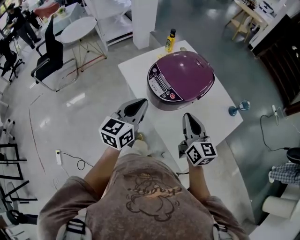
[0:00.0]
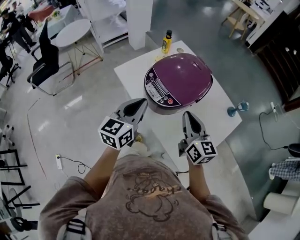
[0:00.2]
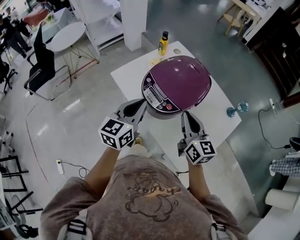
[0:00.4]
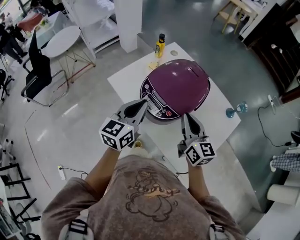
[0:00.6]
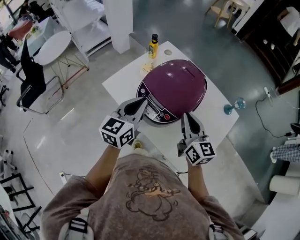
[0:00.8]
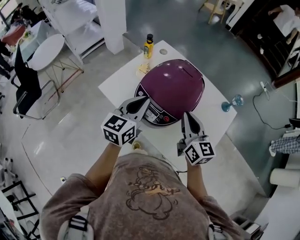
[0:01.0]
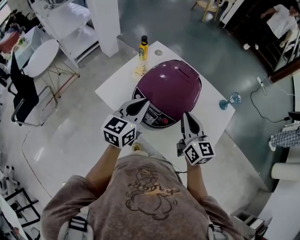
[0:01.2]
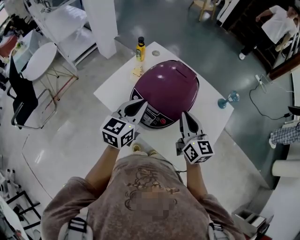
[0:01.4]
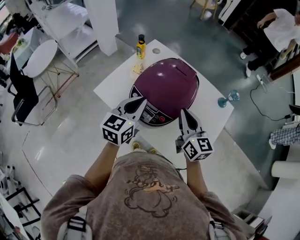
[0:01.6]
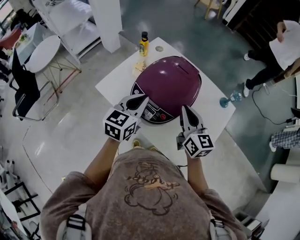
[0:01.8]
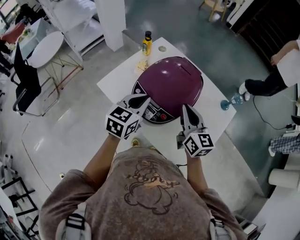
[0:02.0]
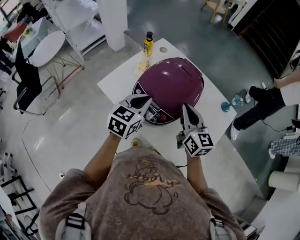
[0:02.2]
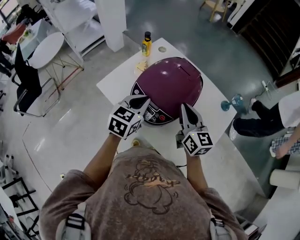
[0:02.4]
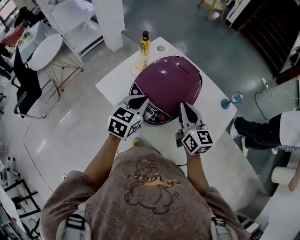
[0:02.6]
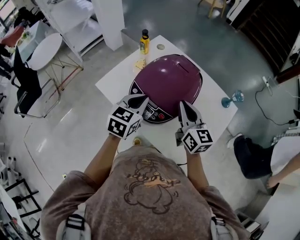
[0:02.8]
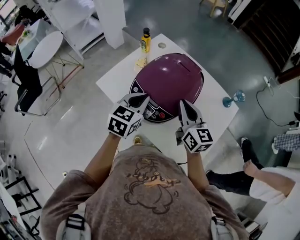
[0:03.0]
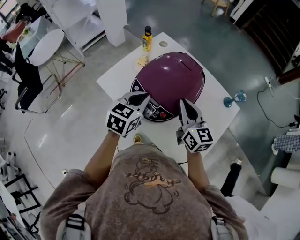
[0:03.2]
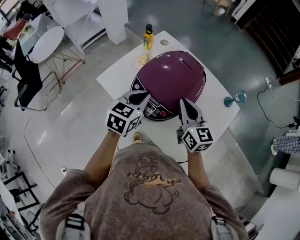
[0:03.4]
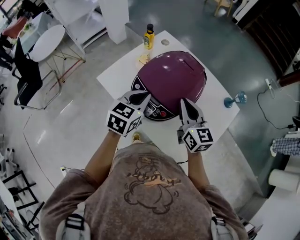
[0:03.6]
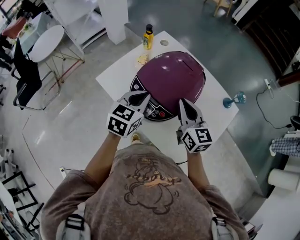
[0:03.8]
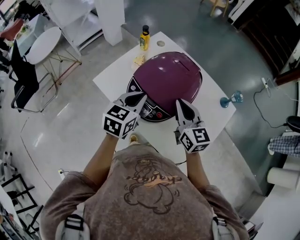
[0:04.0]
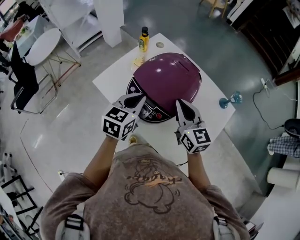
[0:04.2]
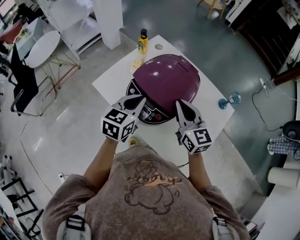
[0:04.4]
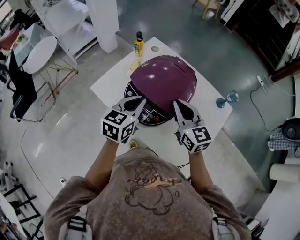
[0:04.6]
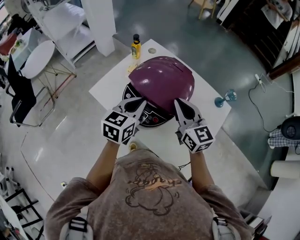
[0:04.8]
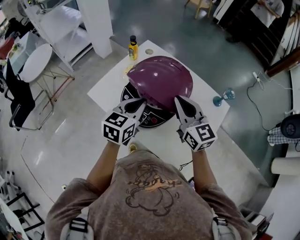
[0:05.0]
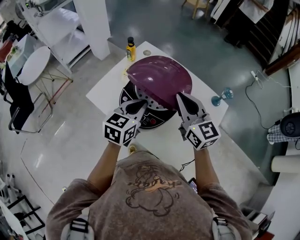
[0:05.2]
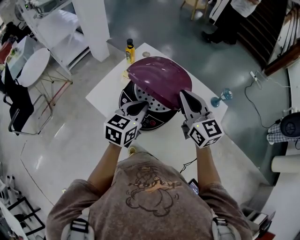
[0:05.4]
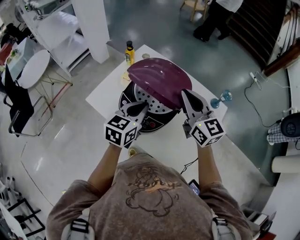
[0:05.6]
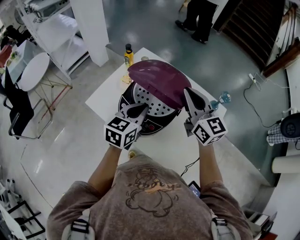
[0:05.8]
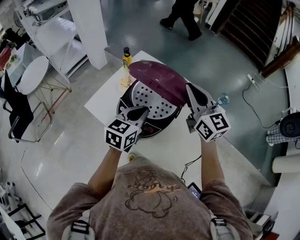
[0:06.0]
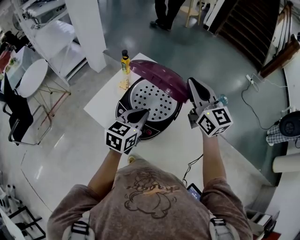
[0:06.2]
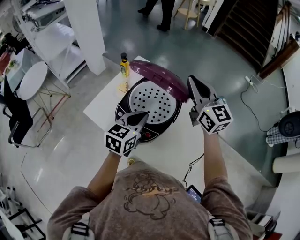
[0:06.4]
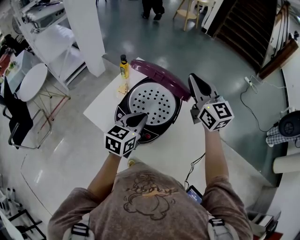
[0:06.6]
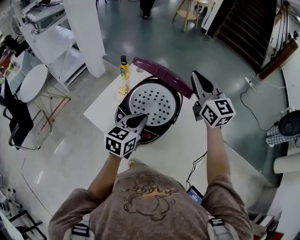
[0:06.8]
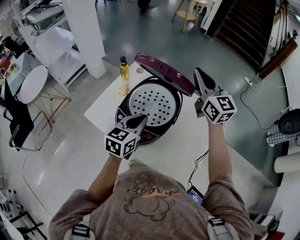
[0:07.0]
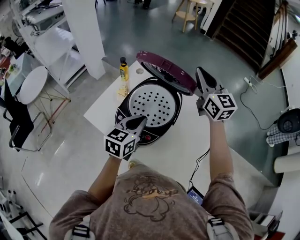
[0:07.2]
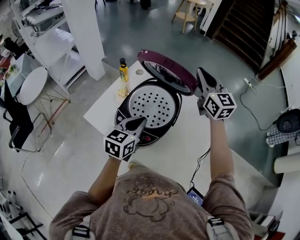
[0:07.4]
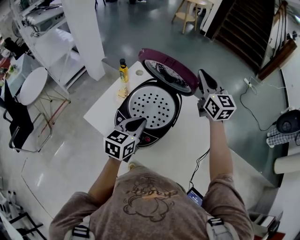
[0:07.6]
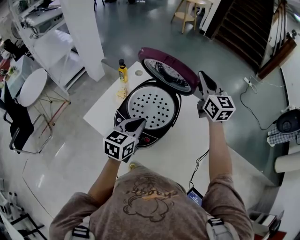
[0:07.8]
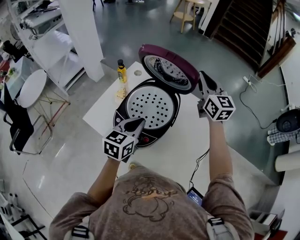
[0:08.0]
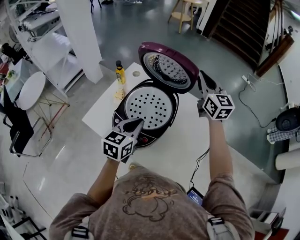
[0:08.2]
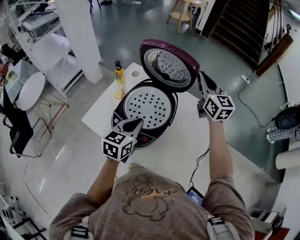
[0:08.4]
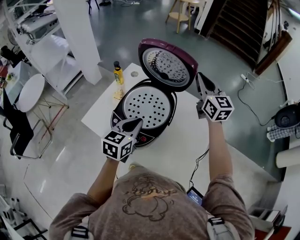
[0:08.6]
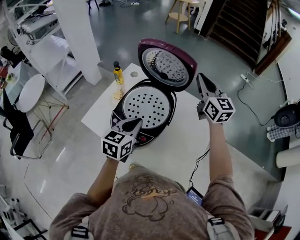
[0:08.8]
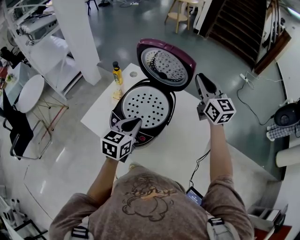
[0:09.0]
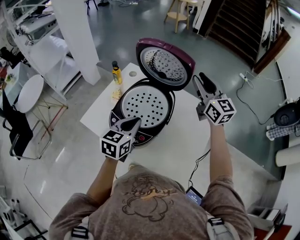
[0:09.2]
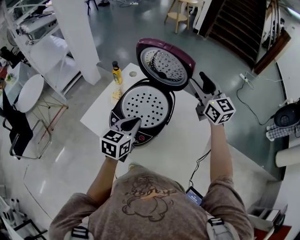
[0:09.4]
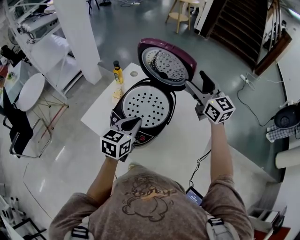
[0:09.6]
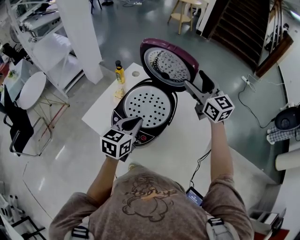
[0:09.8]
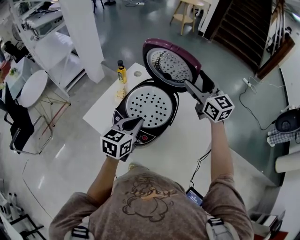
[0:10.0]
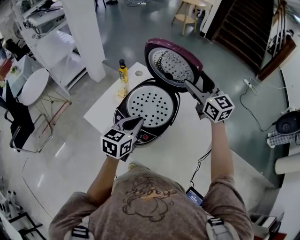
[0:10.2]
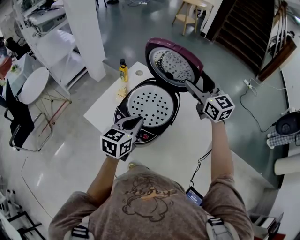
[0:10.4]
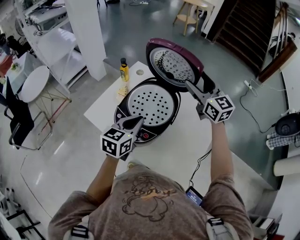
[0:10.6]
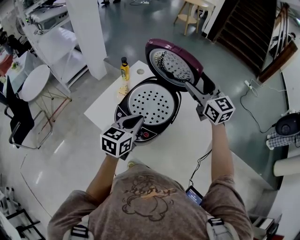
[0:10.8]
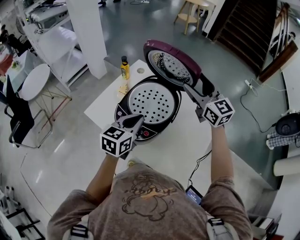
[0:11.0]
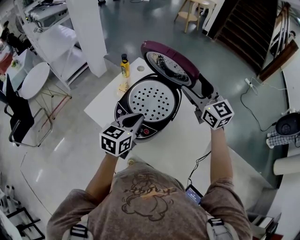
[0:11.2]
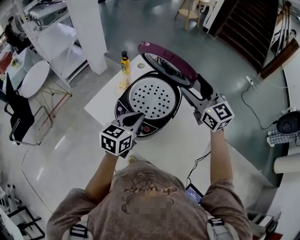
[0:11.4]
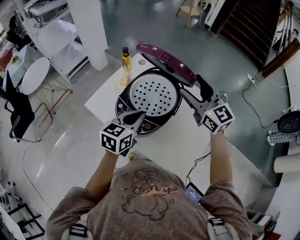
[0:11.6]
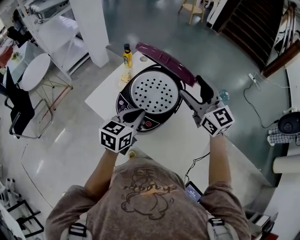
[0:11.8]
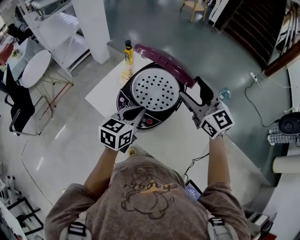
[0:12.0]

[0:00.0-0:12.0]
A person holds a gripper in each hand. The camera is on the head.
0.0 to 1.6 s: The two grippers go approximately 15 cm forward.
1.6 to 4.4 s: There are only small adjustments of the grippers.
4.4 to 6.0 s: The left gripper moves to the right, roughly 5 cm, while the right gripper goes about 15 cm upward, forward and to the right.
6.0 to 7.6 s: The right gripper shifts roughly 15 cm forward and to the right.
7.6 to 9.0 s: The grippers stay close to where they were, moving slightly.
9.0 to 10.4 s: The right gripper is displaced to the left by approximately 5 cm, and opens.
10.4 to 12.0 s: The right gripper is displaced backward and to the left by roughly 10 cm.

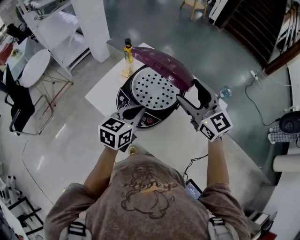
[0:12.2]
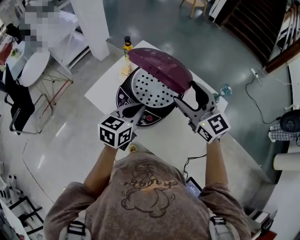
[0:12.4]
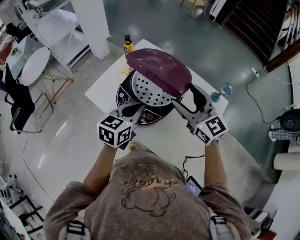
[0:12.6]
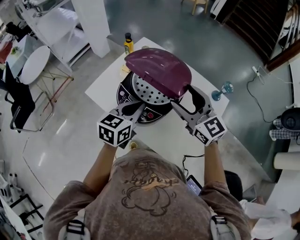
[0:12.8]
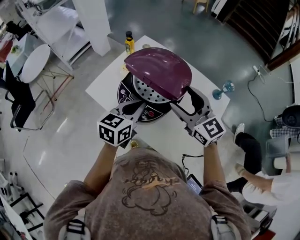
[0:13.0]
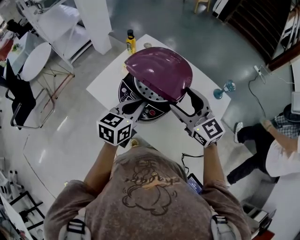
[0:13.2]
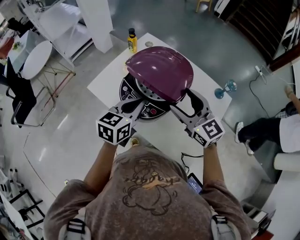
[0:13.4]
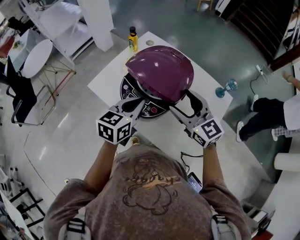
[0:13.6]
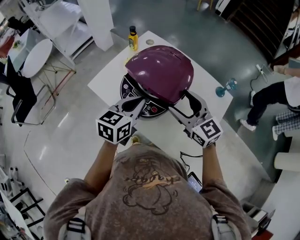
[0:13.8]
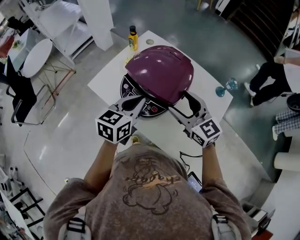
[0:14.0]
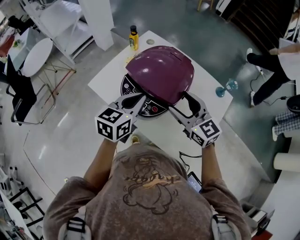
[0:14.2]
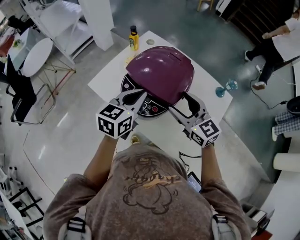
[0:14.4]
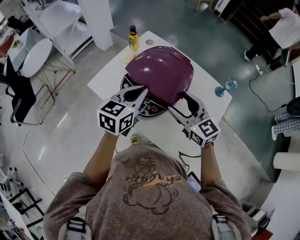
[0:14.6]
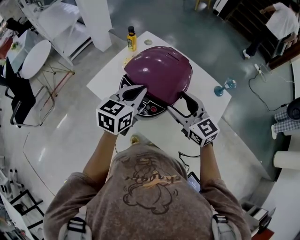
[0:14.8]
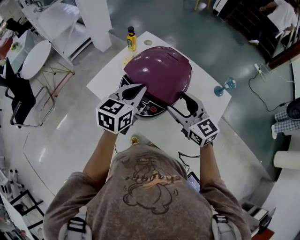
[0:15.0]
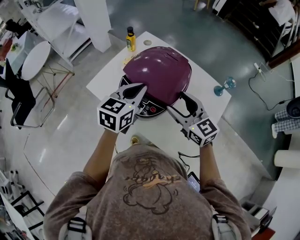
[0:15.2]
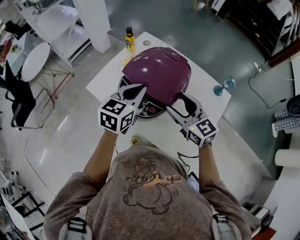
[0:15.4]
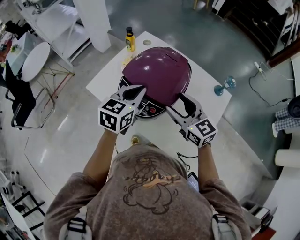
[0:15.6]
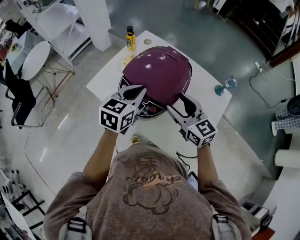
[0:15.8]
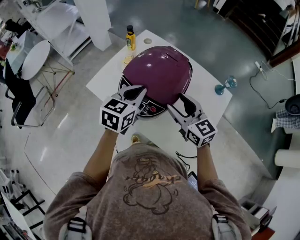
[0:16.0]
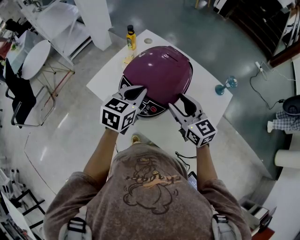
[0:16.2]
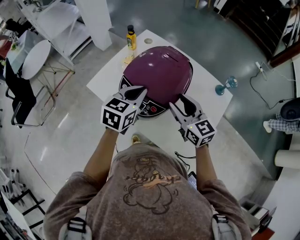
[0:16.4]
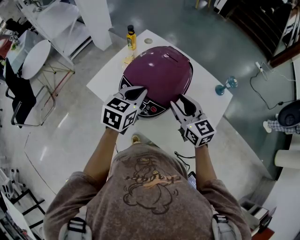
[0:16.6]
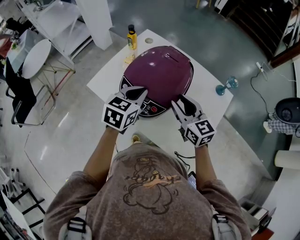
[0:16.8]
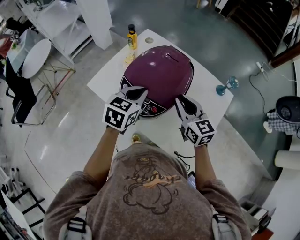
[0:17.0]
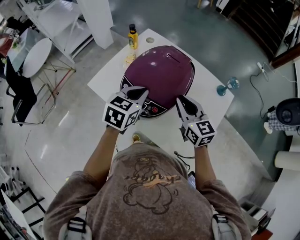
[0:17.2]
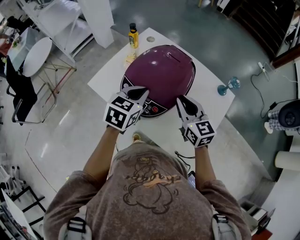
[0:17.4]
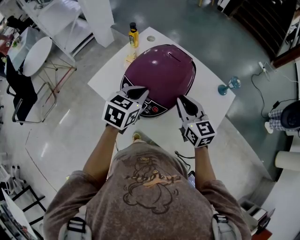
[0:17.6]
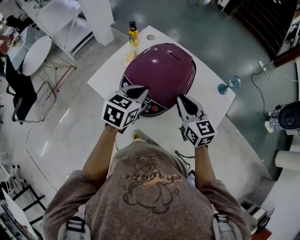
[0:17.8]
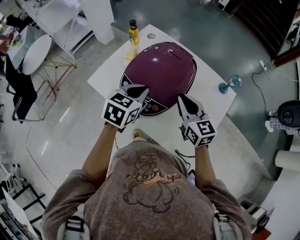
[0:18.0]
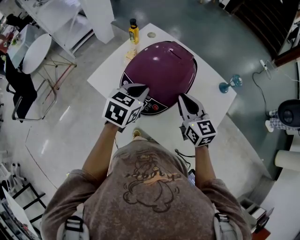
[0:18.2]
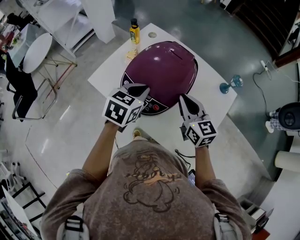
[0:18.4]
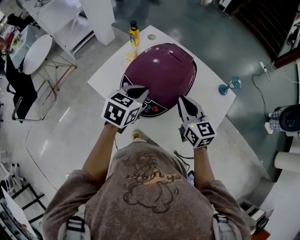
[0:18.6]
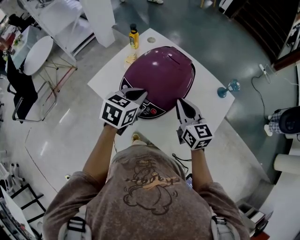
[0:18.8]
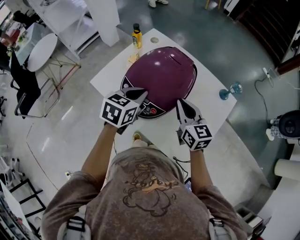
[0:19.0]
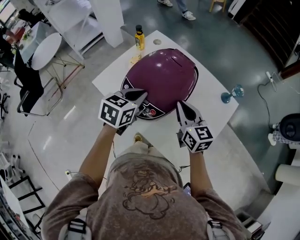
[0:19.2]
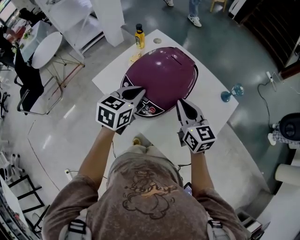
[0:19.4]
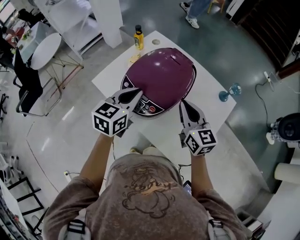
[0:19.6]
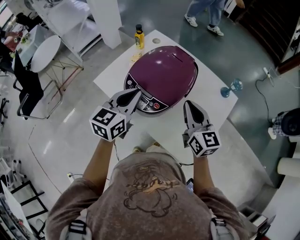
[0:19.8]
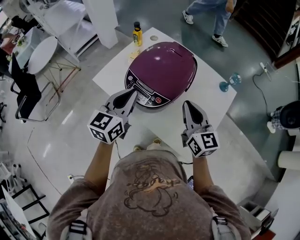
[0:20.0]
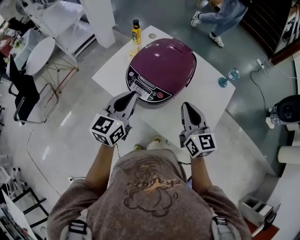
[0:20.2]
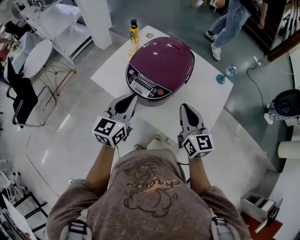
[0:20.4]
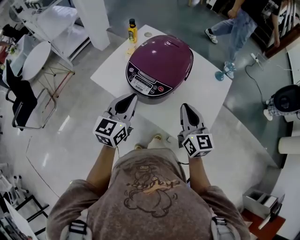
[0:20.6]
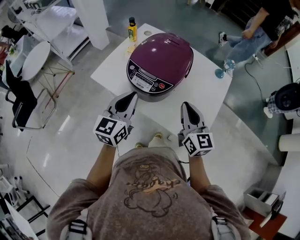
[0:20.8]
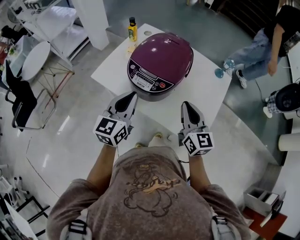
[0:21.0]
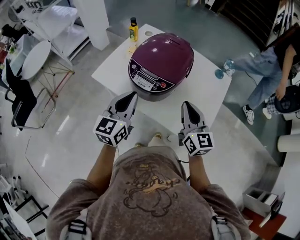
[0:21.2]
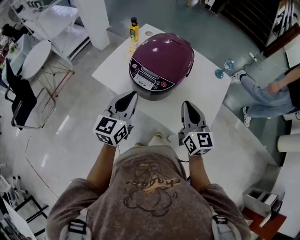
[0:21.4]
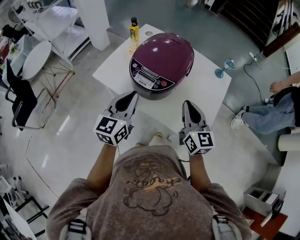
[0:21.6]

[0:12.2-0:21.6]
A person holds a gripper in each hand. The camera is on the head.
12.2 to 13.8 s: The right gripper travels downward and backward by some 10 cm.
13.8 to 15.4 s: The grippers make only small movements.
15.4 to 17.0 s: The right gripper closes up.
17.0 to 18.4 s: There are only small adjustments of the grippers.
18.4 to 20.0 s: The left gripper goes approximately 10 cm backward, upward and to the left, and swivels approximately 30 degrees; the right gripper goes about 5 cm backward.
20.0 to 21.6 s: The grippers both shift backward by roughly 10 cm.

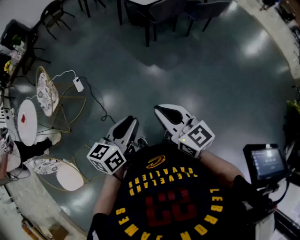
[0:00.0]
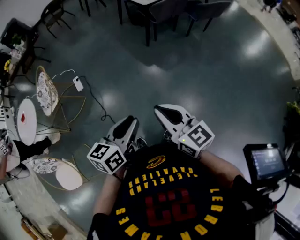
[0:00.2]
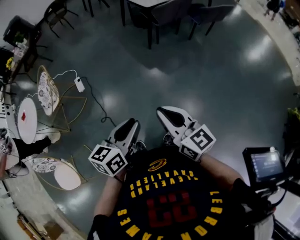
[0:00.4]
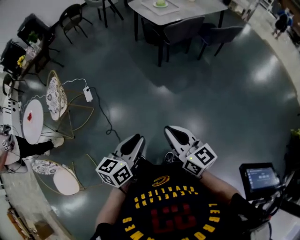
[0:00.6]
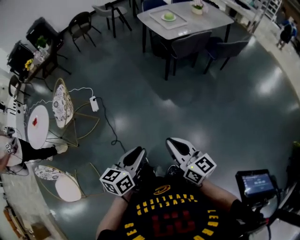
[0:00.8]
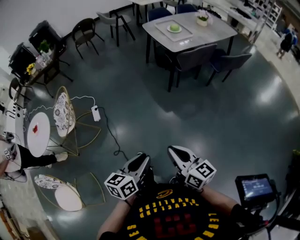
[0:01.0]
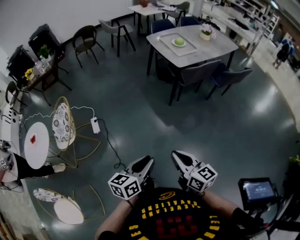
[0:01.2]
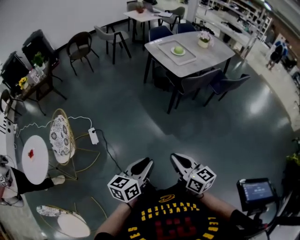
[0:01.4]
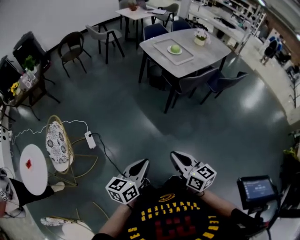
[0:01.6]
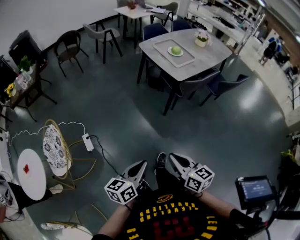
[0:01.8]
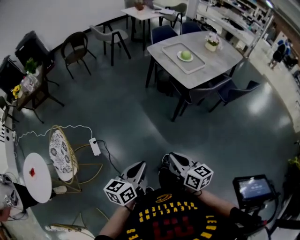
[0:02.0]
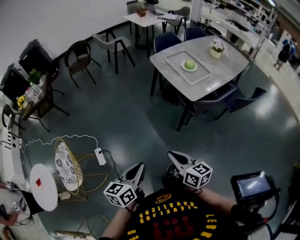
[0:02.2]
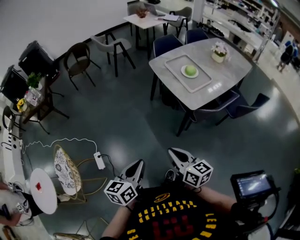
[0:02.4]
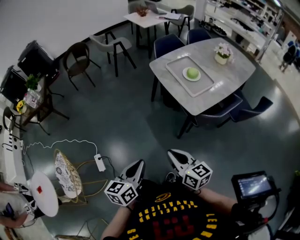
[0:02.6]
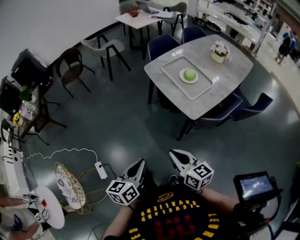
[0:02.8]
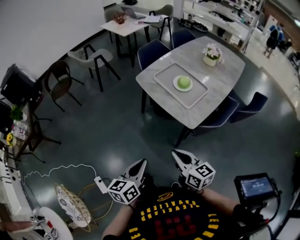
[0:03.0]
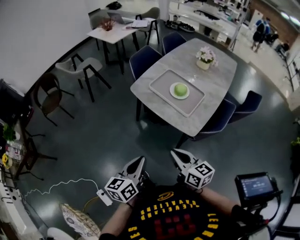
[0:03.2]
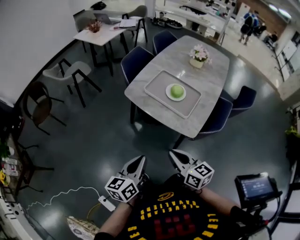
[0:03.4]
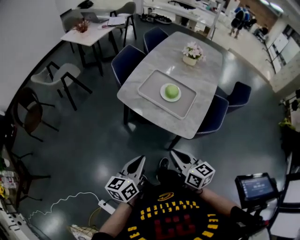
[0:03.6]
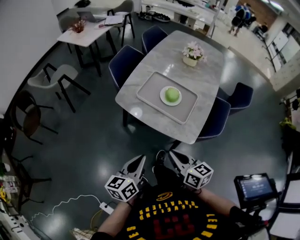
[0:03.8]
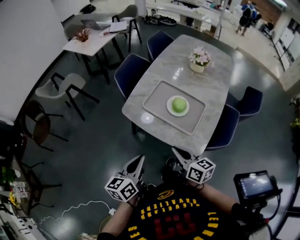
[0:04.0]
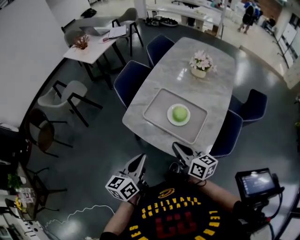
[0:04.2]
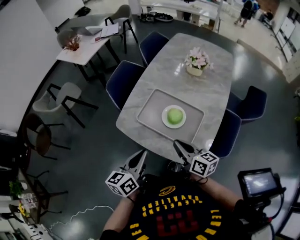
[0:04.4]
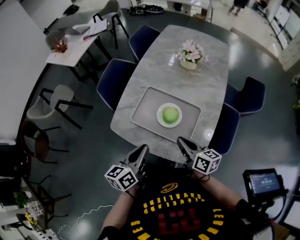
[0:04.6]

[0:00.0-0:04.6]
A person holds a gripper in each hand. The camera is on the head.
0.0 to 1.6 s: The grippers both shift forward and to the left by approximately 35 cm.
1.6 to 3.0 s: The pair of grippers is taken forward, roughly 50 cm.
3.0 to 4.6 s: The left gripper ends up some 40 cm from where it was, and turns by approximately 30 degrees. The right gripper changes place by about 40 cm, and rotates roughly 30 degrees.
